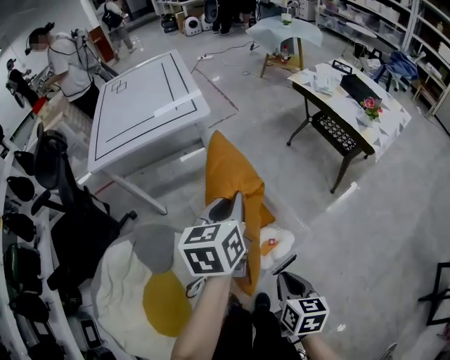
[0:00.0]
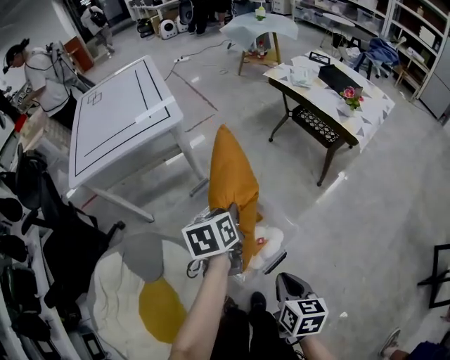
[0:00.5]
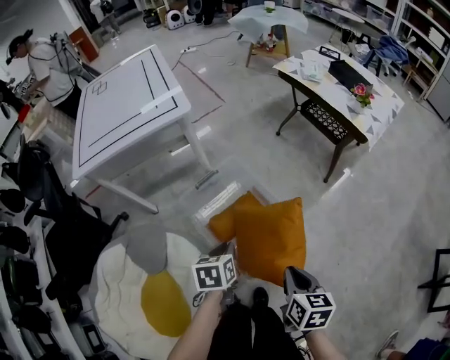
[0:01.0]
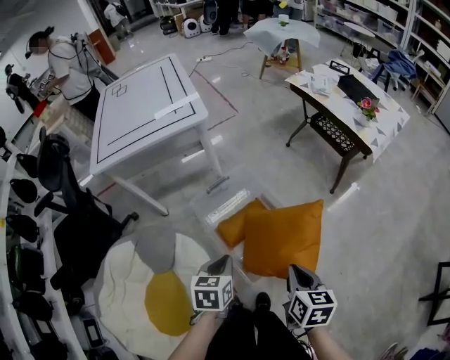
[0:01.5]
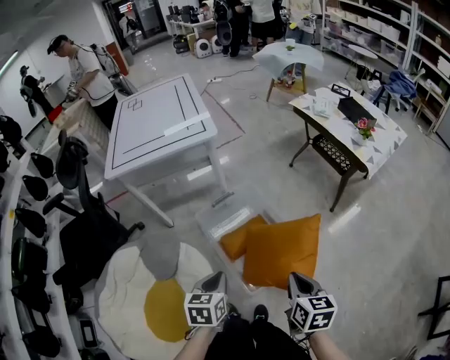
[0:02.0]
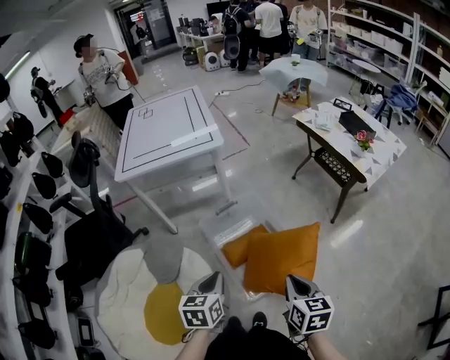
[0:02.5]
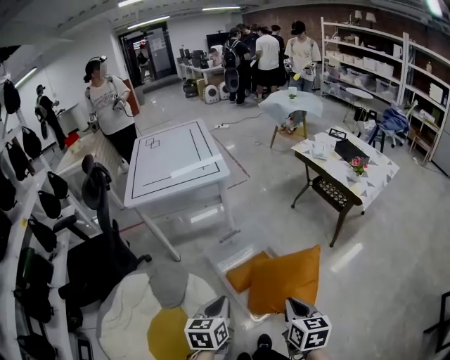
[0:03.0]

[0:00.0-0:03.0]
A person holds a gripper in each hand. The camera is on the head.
0:00.0 to 0:01.5: The left gripper goes roughly 20 cm downward and backward, and turns by roughly 20 degrees.
0:01.5 to 0:03.0: The right gripper heads backward and upward, covering approximately 10 cm. The left gripper heads backward, upward and to the left, covering approximately 15 cm.

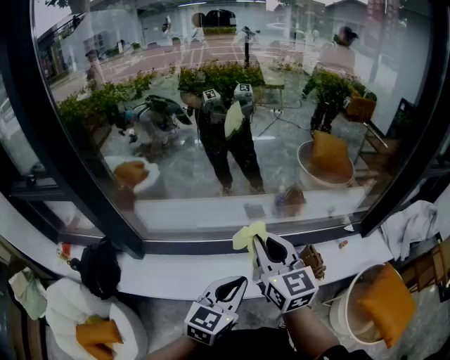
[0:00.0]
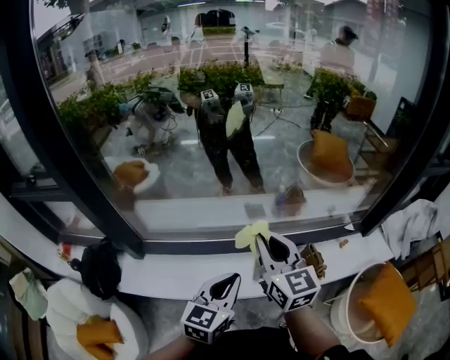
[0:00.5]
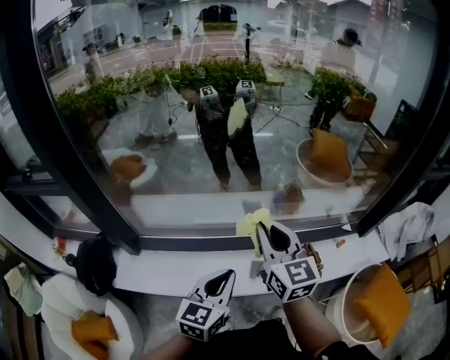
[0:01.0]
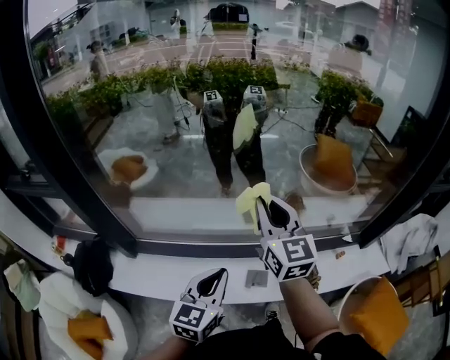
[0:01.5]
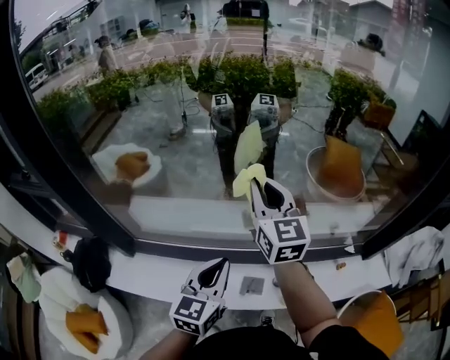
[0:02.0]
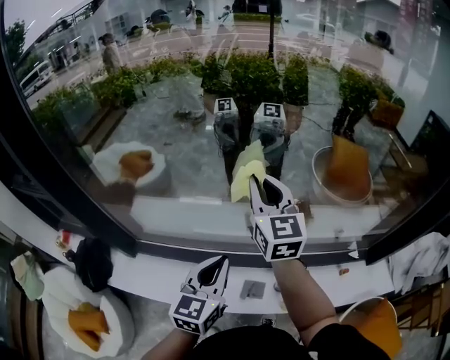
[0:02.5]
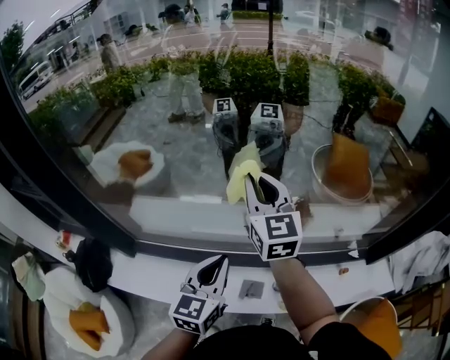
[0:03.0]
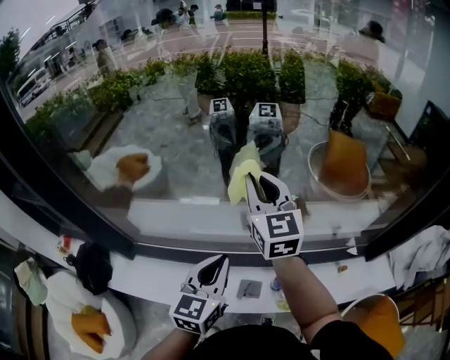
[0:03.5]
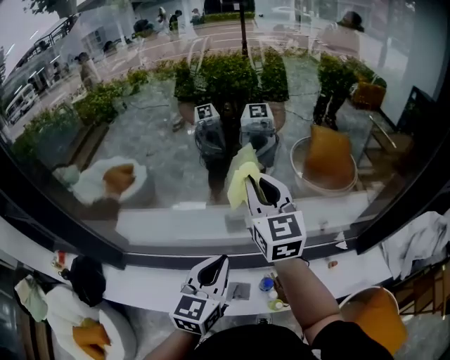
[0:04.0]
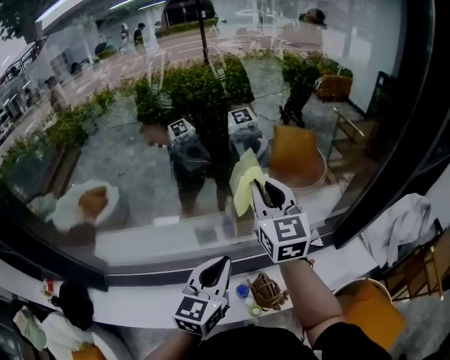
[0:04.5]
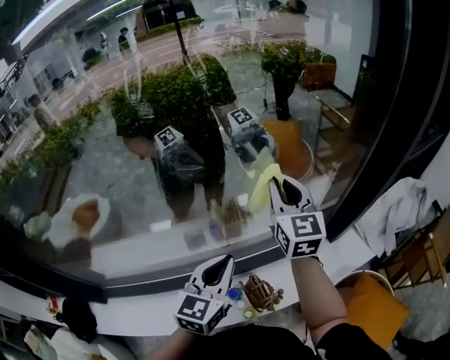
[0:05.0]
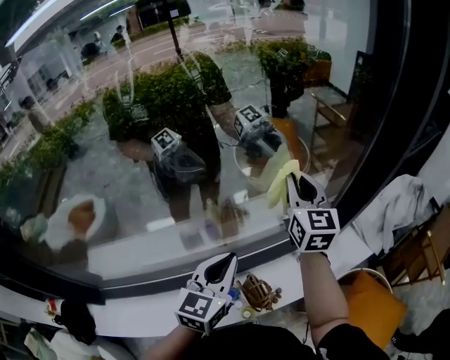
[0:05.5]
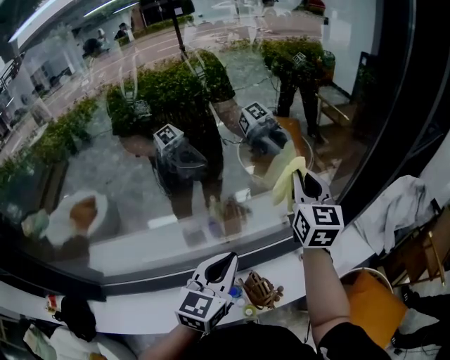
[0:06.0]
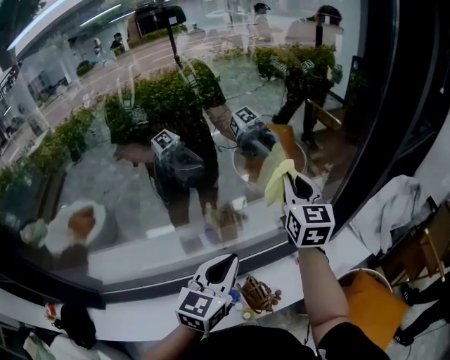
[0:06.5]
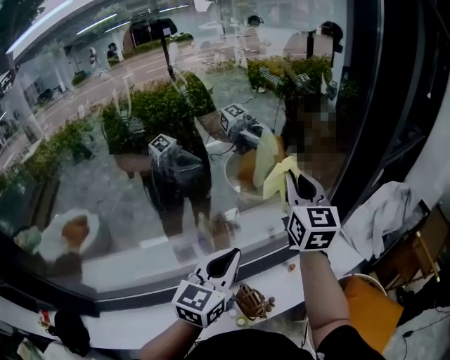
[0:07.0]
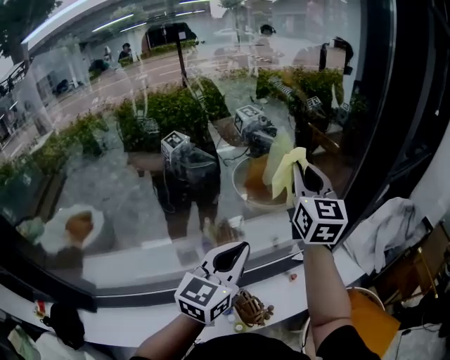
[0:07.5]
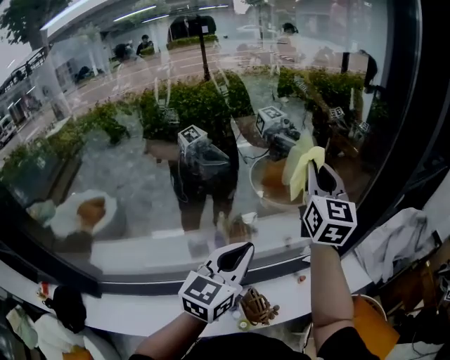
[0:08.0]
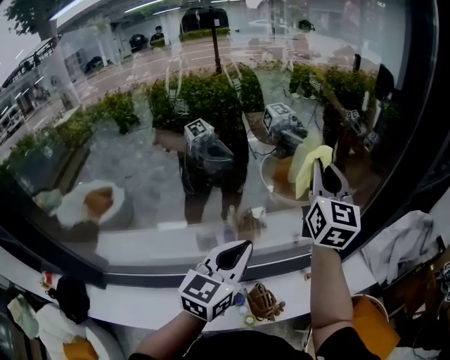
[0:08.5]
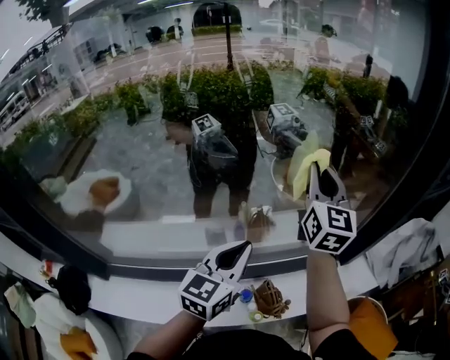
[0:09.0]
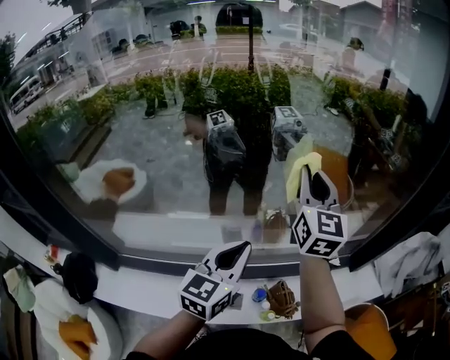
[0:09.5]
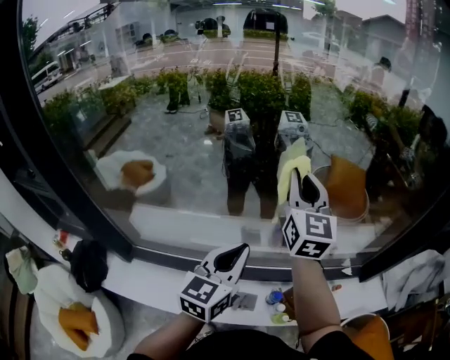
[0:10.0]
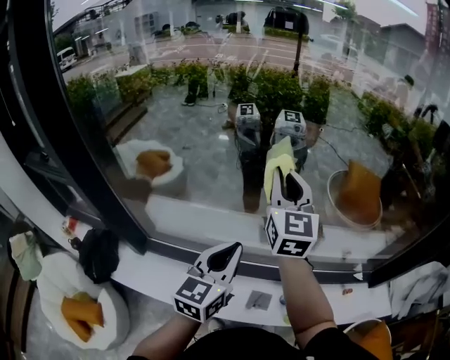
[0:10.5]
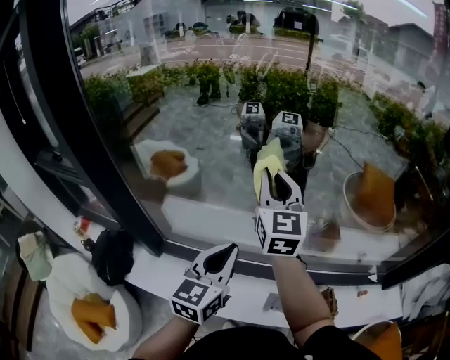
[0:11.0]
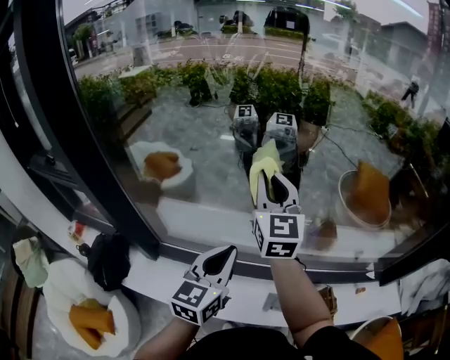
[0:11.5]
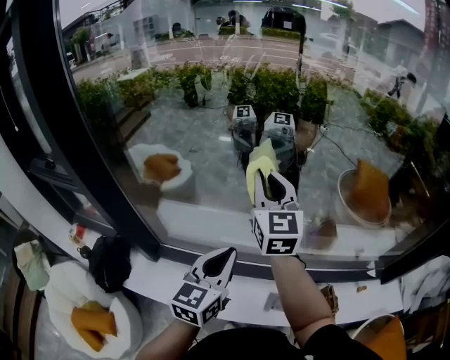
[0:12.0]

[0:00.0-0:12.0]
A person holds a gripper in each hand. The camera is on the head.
0:00.0 to 0:02.0: The grippers both shift forward by about 20 cm.
0:02.0 to 0:04.0: Both grippers move to the right and forward, some 15 cm.
0:04.0 to 0:06.0: The right gripper goes some 35 cm to the right, and swivels about 30 degrees, while the left gripper goes roughly 25 cm to the right and forward, and changes its angle by about 20 degrees.
0:06.0 to 0:08.0: Both grippers travel together upward, approximately 10 cm.
0:08.0 to 0:10.0: The left gripper shifts about 30 cm to the left and backward; the right gripper is displaced to the left by approximately 35 cm.
0:10.0 to 0:12.0: Both grippers travel together to the left, some 25 cm.

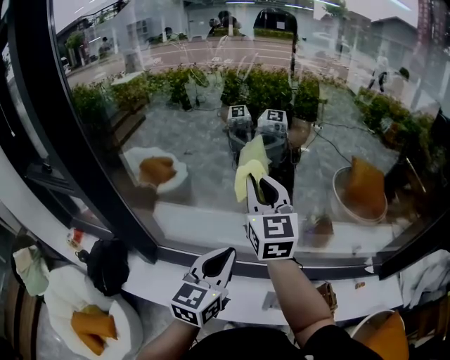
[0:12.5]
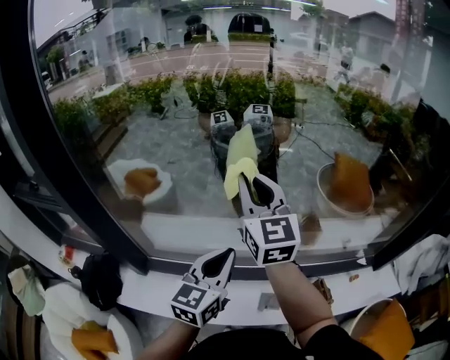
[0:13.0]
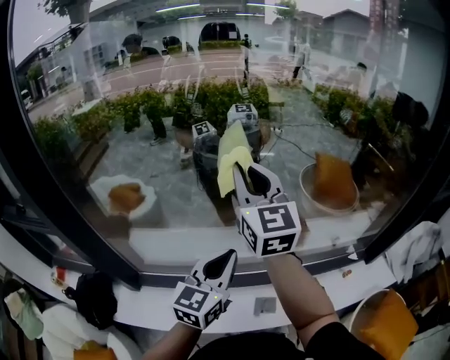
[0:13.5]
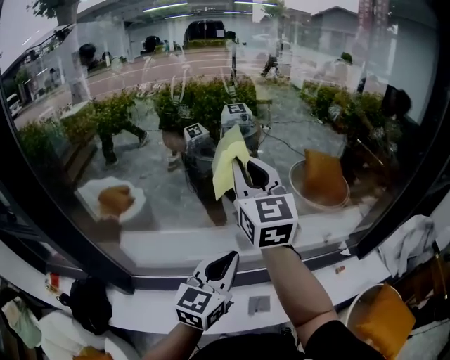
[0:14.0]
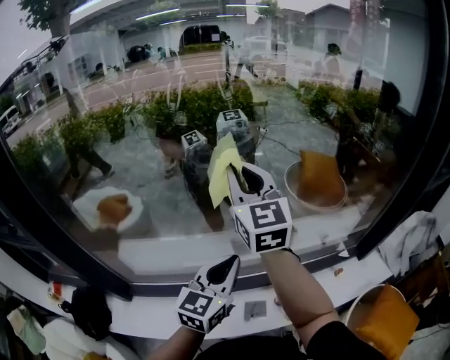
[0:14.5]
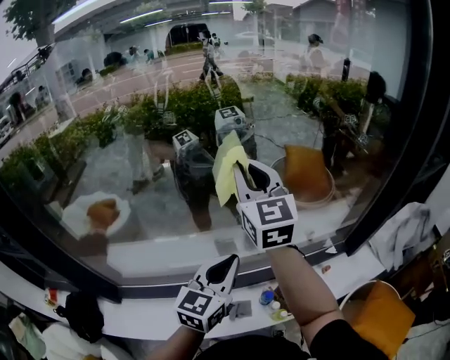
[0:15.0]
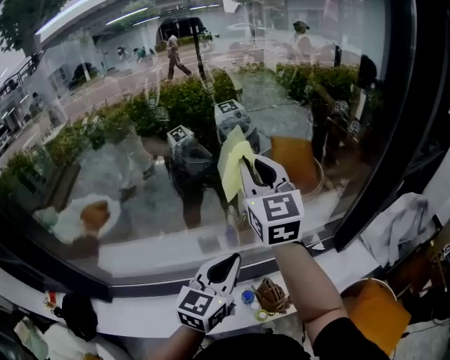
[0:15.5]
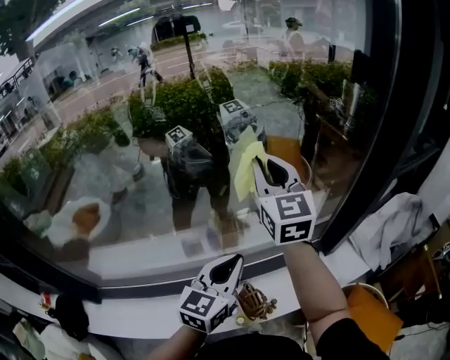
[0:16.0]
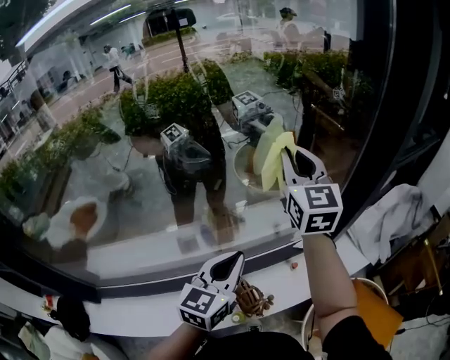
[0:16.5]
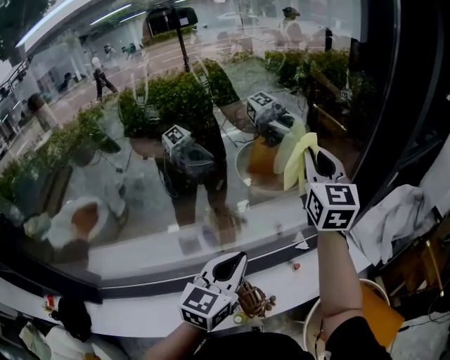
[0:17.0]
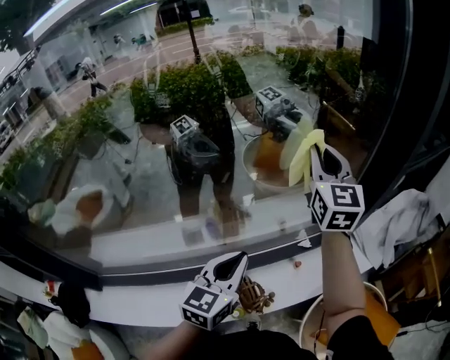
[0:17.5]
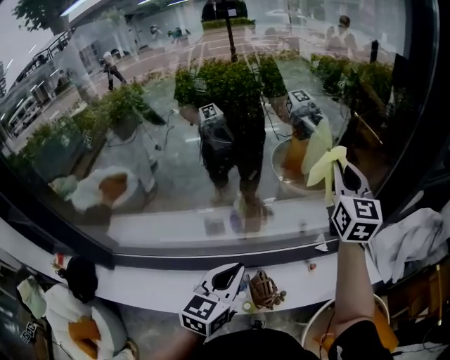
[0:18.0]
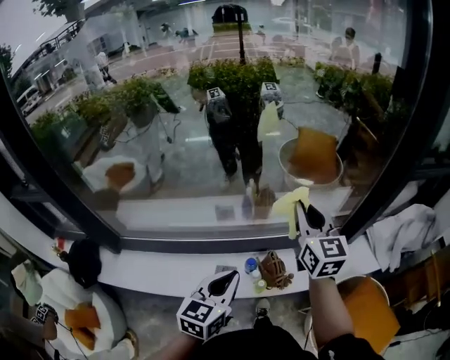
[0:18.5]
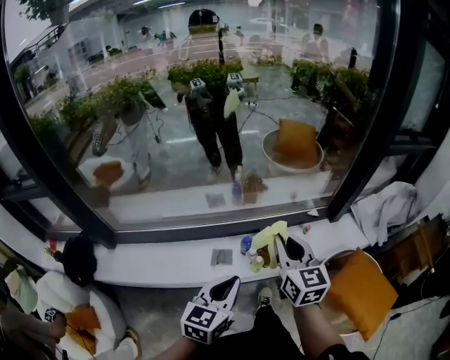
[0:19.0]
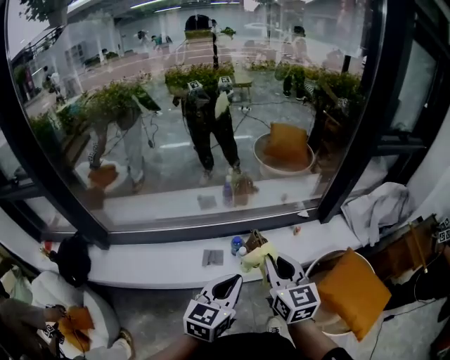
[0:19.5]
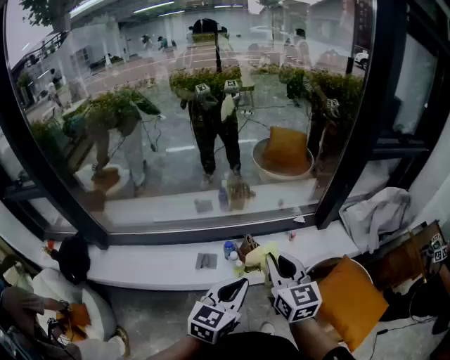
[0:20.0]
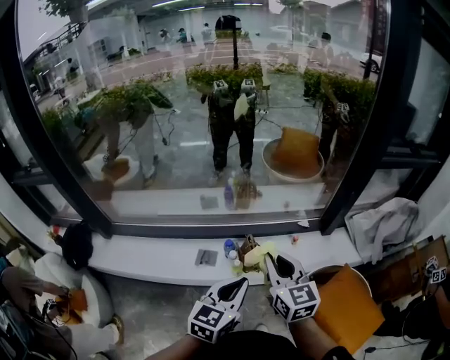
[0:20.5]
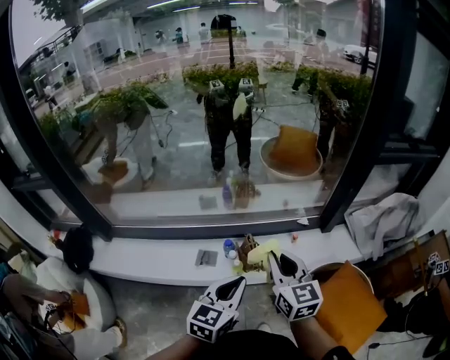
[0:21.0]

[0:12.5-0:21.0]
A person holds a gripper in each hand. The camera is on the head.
0:12.5 to 0:14.5: The left gripper travels to the right by approximately 15 cm; the right gripper moves to the right and upward, some 15 cm.
0:14.5 to 0:16.5: The pair of grippers is taken to the right, about 50 cm.
0:16.5 to 0:19.0: The left gripper moves backward, roughly 40 cm. The right gripper heads backward and downward, covering roughly 50 cm, and turns by roughly 20 degrees.
0:19.0 to 0:21.0: The grippers both shift to the right by approximately 15 cm.

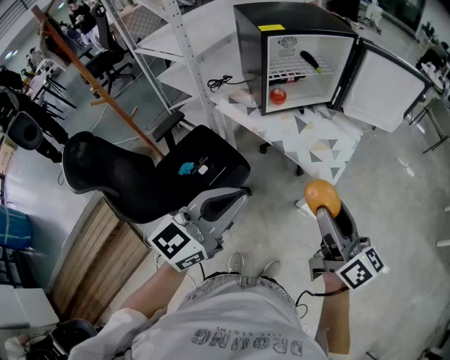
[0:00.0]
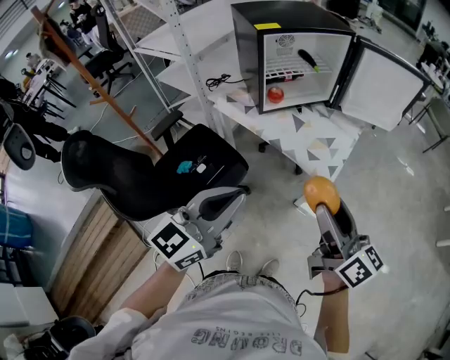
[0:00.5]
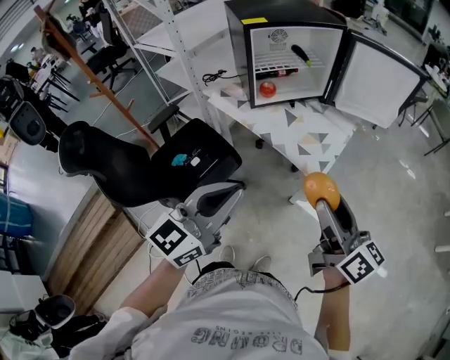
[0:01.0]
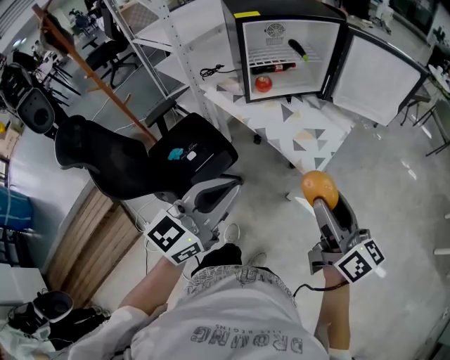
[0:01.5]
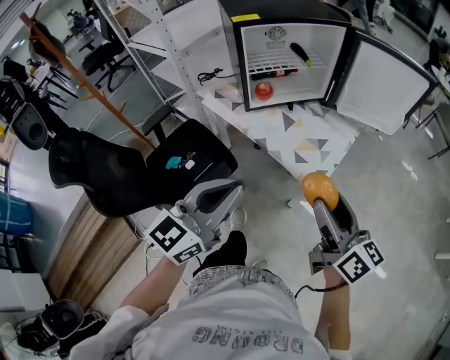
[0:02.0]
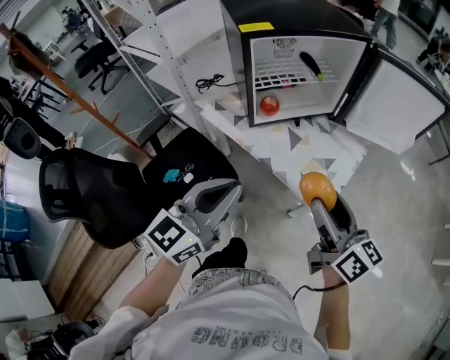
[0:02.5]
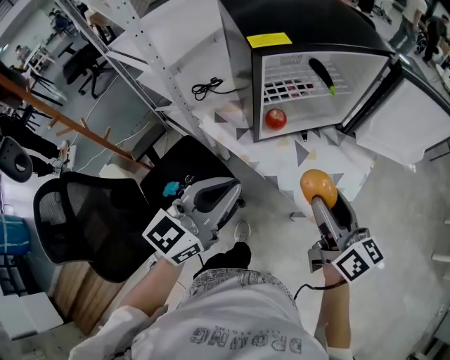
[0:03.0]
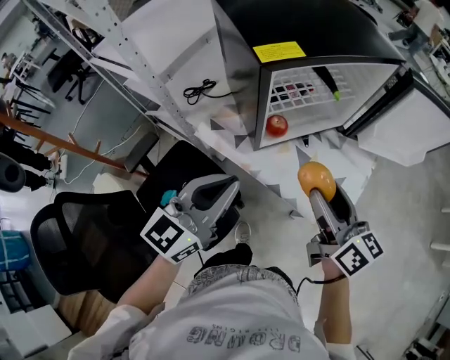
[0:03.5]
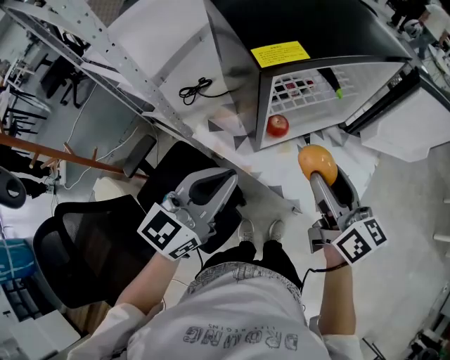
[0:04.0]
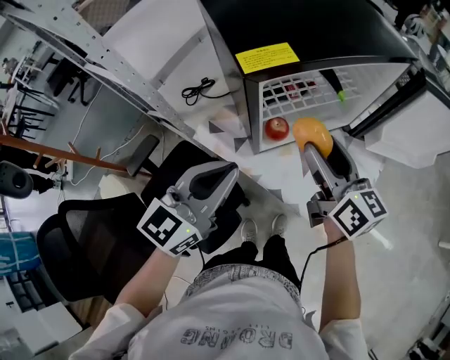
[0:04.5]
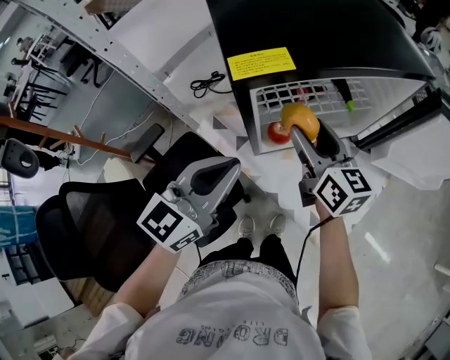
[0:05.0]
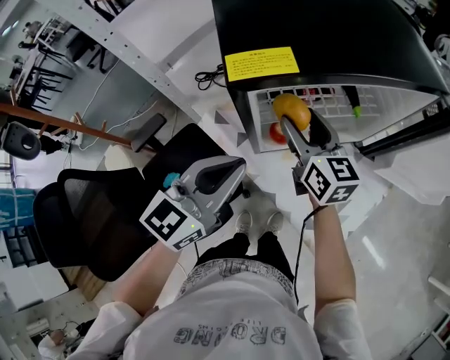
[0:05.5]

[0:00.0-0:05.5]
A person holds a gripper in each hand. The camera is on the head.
0:00.0 to 0:02.0: Both grippers travel together to the right and forward, some 10 cm.
0:02.0 to 0:03.5: The two grippers go about 30 cm forward and to the left.
0:03.5 to 0:05.5: The right gripper is displaced forward by roughly 20 cm. Meanwhile the left gripper heads forward, covering roughly 10 cm.
